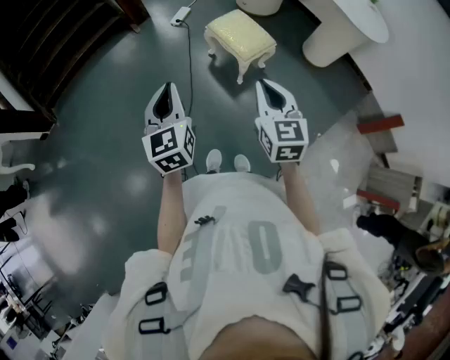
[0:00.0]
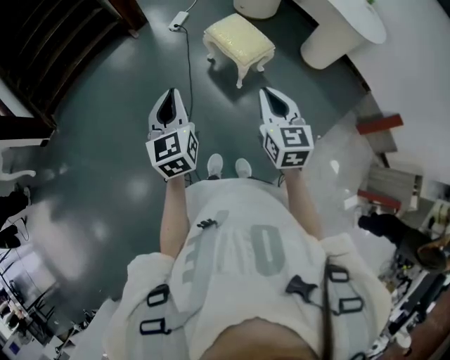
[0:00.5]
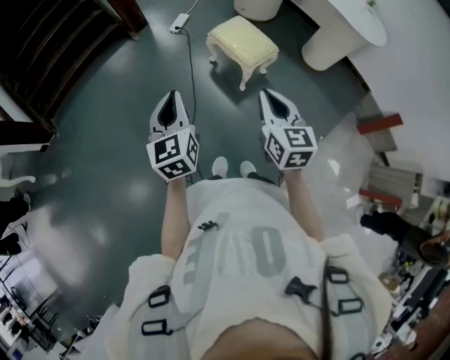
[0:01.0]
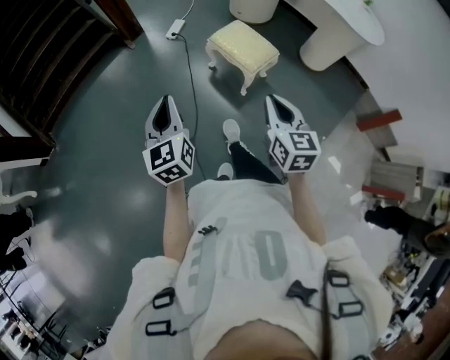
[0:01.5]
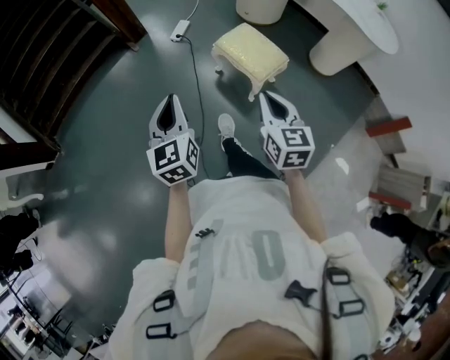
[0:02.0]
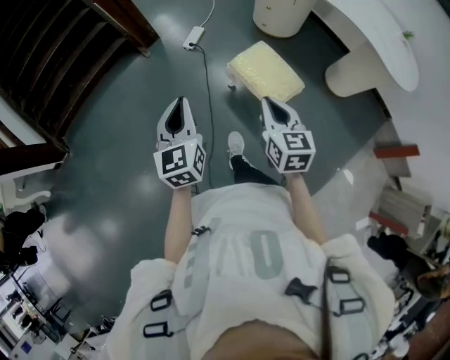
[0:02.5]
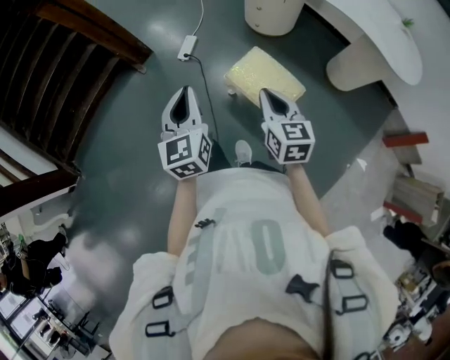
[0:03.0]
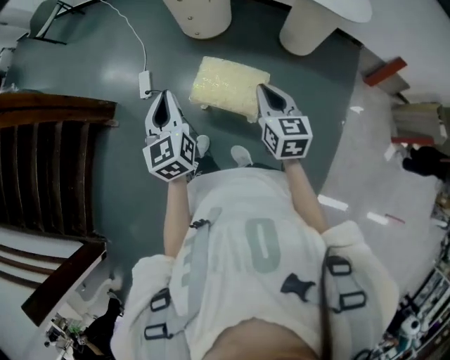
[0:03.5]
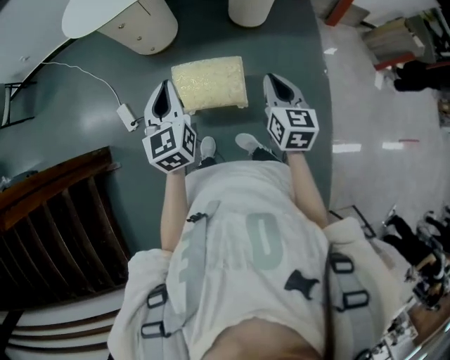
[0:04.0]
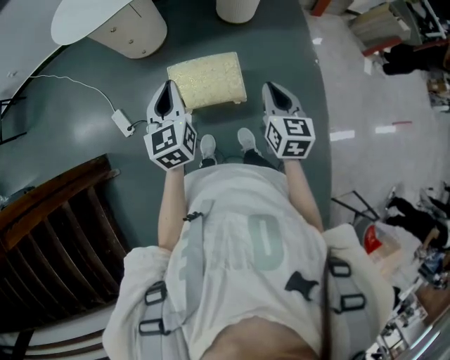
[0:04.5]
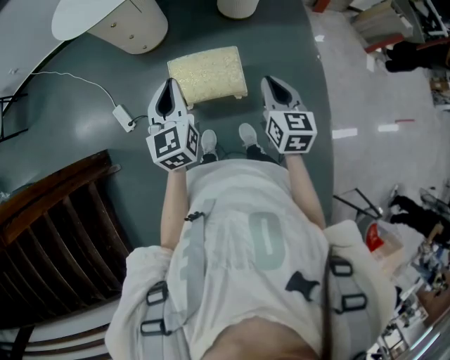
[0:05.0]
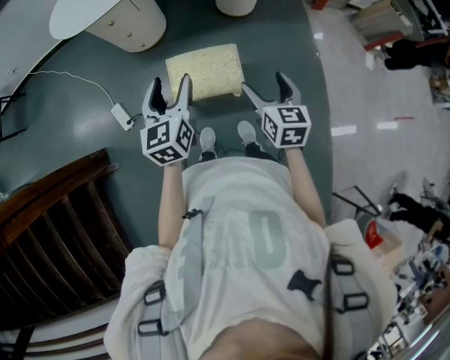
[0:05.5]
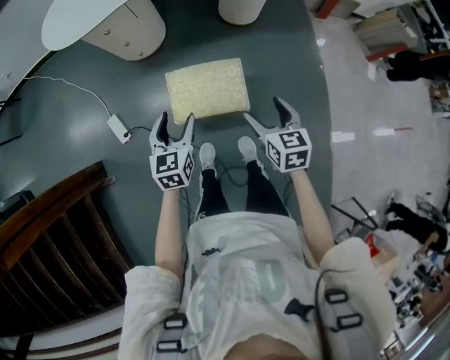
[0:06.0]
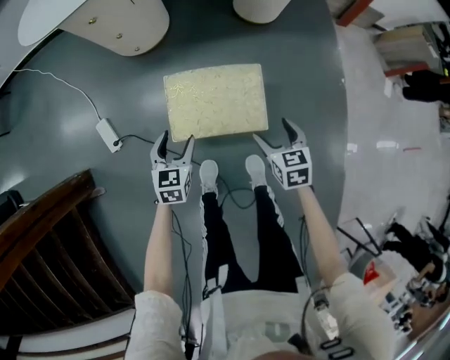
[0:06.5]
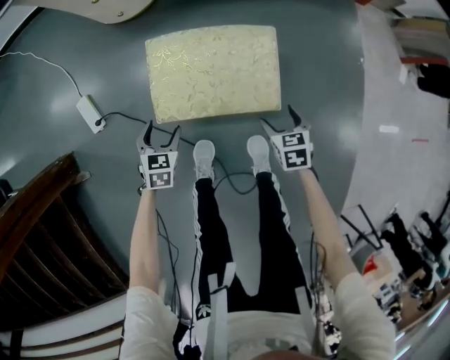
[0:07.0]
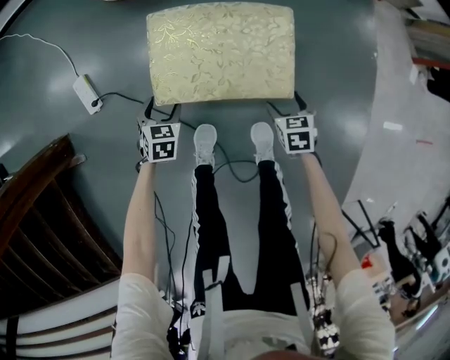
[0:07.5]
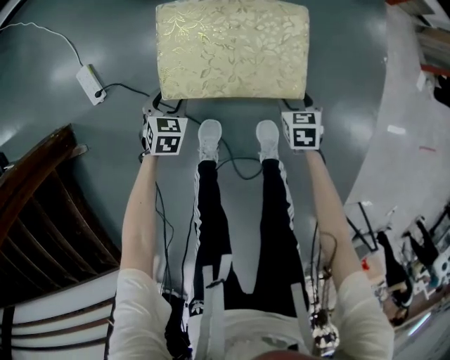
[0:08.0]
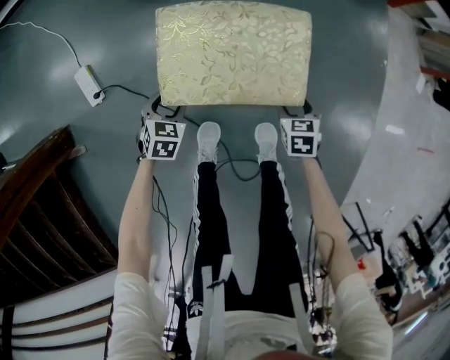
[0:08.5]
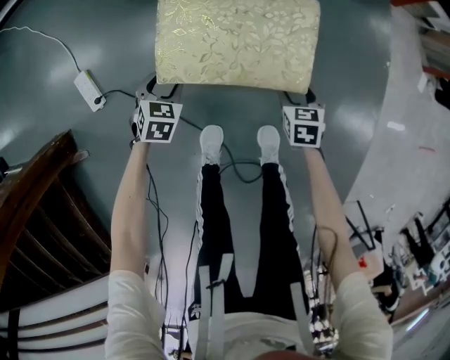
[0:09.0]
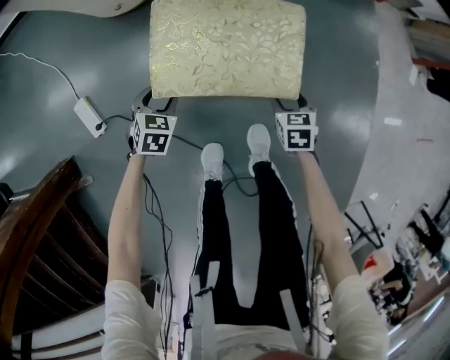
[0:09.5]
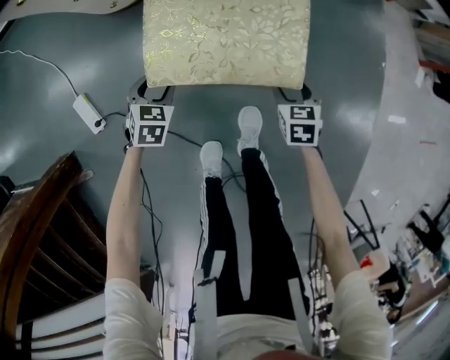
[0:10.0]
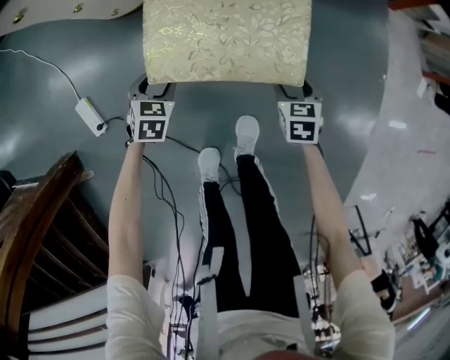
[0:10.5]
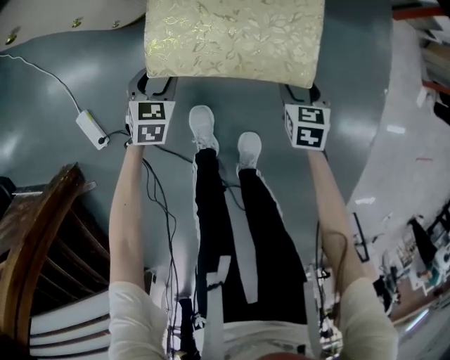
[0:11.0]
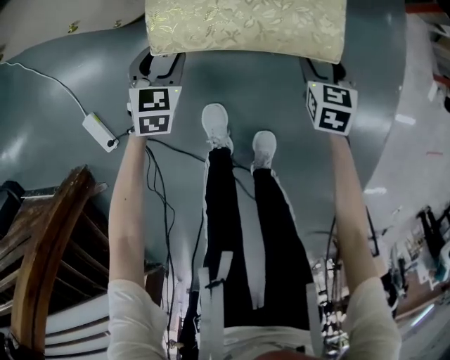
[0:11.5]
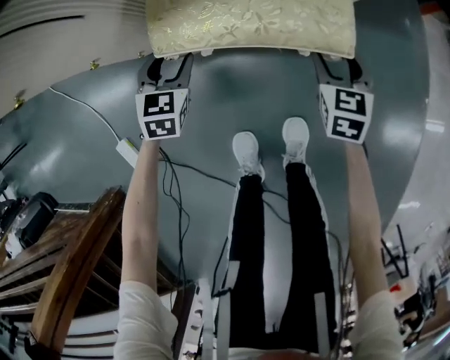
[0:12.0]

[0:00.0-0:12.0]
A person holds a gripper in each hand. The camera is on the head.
0.0 to 2.0 s: Both grippers travel together forward and to the left, about 15 cm.
2.0 to 4.0 s: The left gripper shifts by some 50 cm, and turns by roughly 50 degrees; the right gripper changes place by some 30 cm, and swivels approximately 60 degrees.
4.0 to 6.0 s: The left gripper is displaced downward by roughly 15 cm, turns by about 20 degrees, and opens its fingers, while the right gripper heads downward and to the left, covering approximately 10 cm, and opens.
6.0 to 8.0 s: Both grippers move downward, about 50 cm. The left gripper turns by about 30 degrees; the right gripper rotates approximately 30 degrees.
8.0 to 10.0 s: The grippers stay close to where they were, moving slightly.
10.0 to 12.0 s: The right gripper rotates approximately 20 degrees; the left gripper travels backward and back again, roughly 10 cm each way, and changes its angle by roughly 20 degrees.

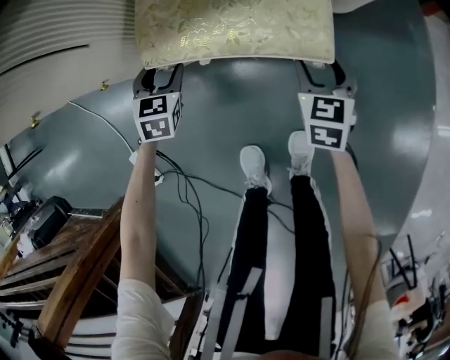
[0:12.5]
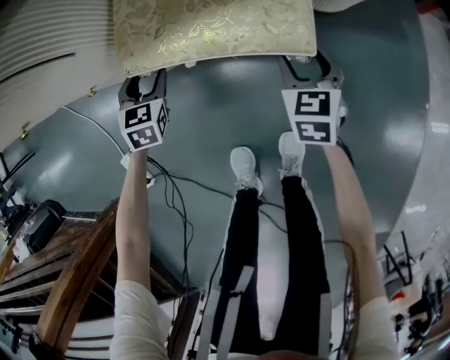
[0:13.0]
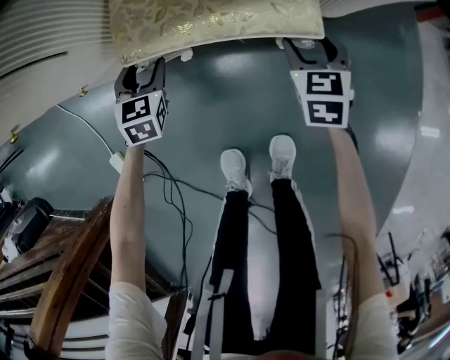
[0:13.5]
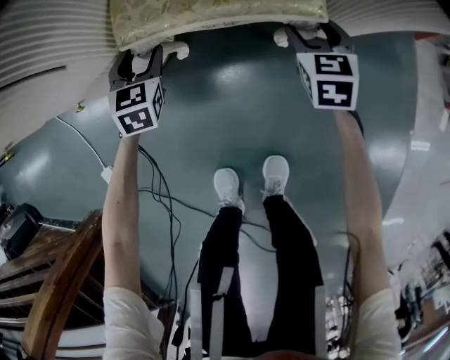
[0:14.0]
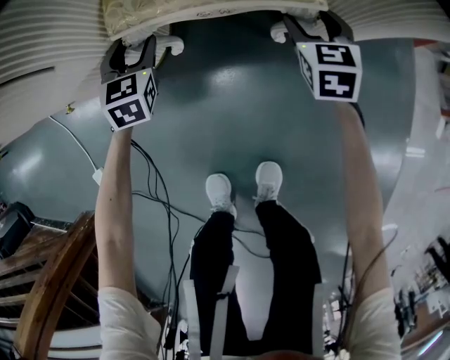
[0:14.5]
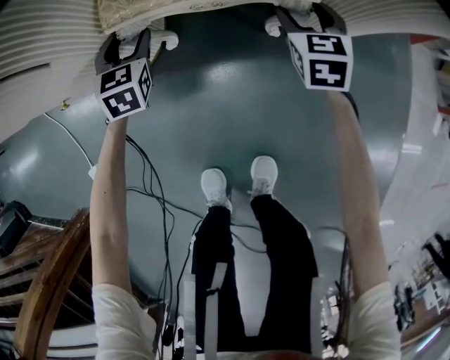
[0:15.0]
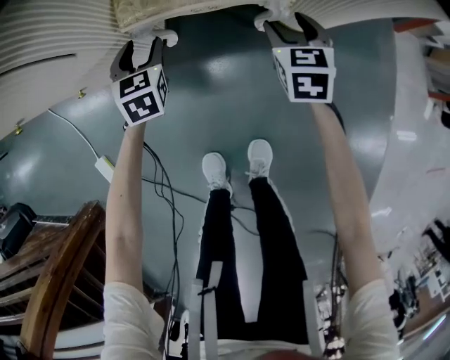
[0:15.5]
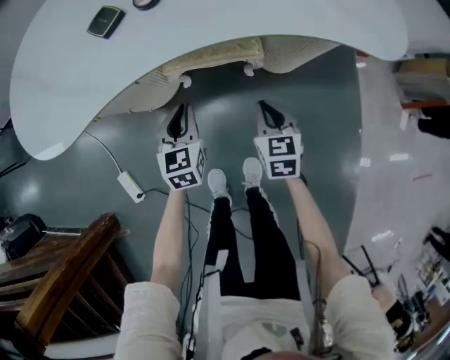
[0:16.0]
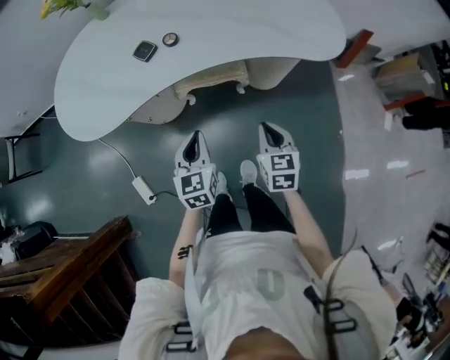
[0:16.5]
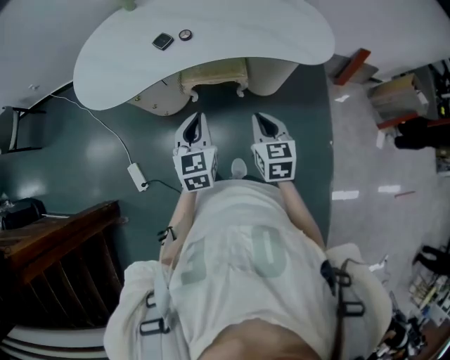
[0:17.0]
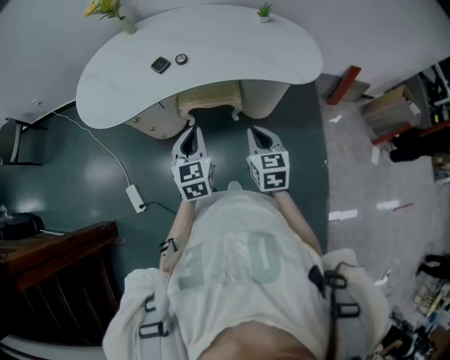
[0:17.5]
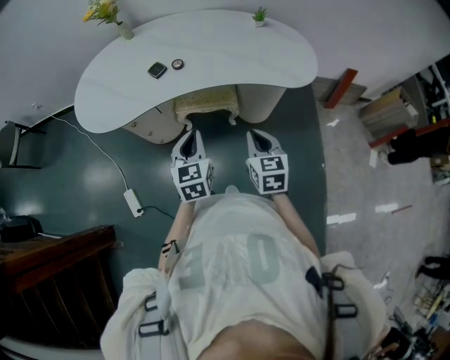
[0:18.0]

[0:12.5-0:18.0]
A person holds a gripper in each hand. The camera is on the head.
12.5 to 14.5 s: The left gripper heads forward, covering about 10 cm, while the right gripper heads forward, covering roughly 20 cm.
14.5 to 16.0 s: The right gripper goes approximately 25 cm backward and upward, and closes, while the left gripper moves upward and backward, about 30 cm, and closes.
16.0 to 18.0 s: Both grippers move upward and backward, roughly 30 cm.

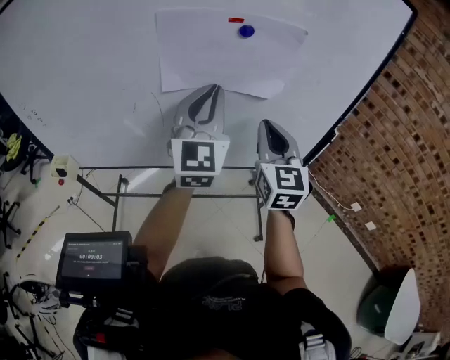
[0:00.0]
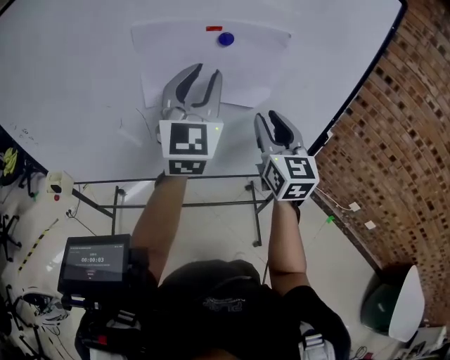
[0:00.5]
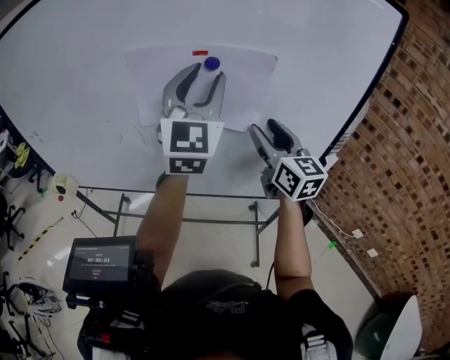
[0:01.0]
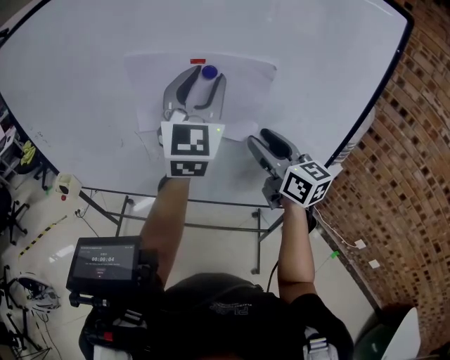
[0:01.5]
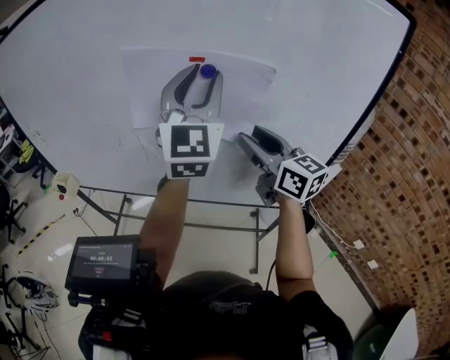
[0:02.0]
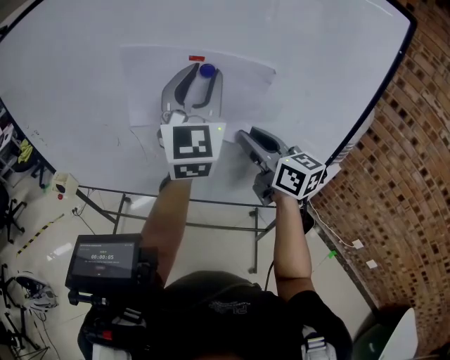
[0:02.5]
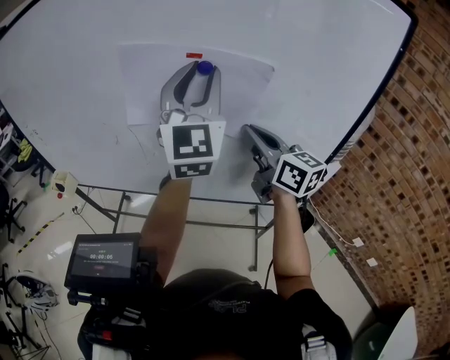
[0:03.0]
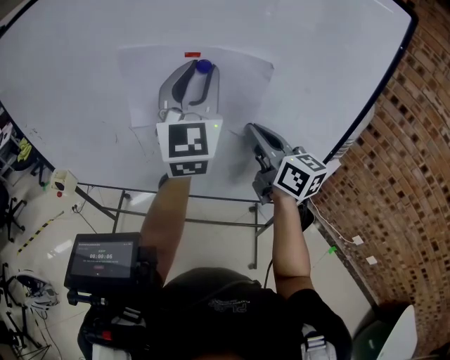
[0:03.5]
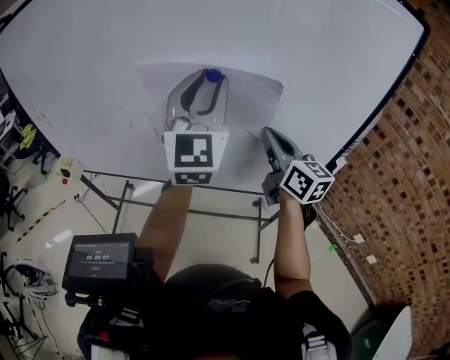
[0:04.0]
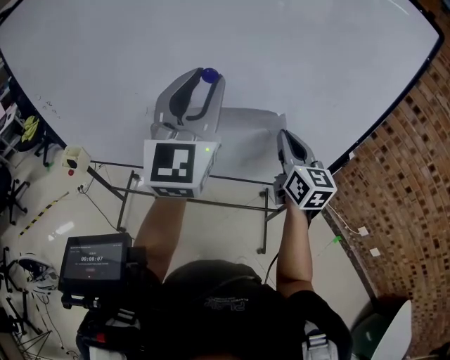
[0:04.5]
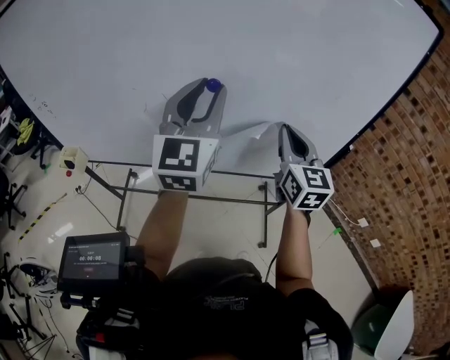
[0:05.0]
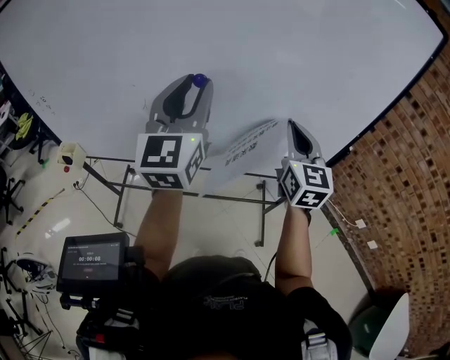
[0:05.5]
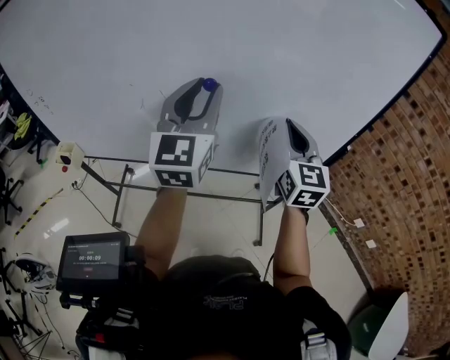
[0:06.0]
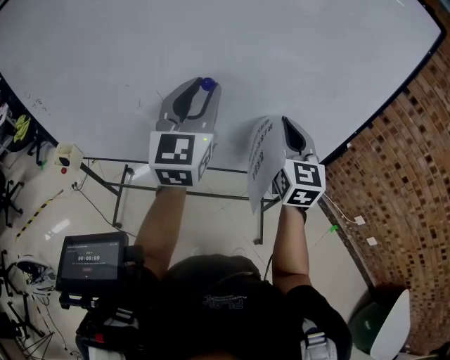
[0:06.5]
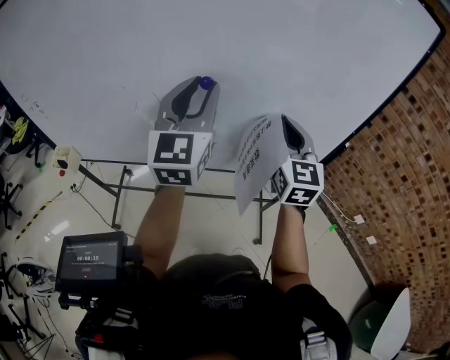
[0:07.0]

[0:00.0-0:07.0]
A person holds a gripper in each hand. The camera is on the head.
0.0 to 2.0 s: The right gripper shifts roughly 5 cm forward, swivels approximately 50 degrees, and opens up, while the left gripper shifts approximately 10 cm upward and forward, and opens.
2.0 to 3.5 s: The right gripper closes.
3.5 to 5.0 s: The left gripper heads downward and to the left, covering approximately 10 cm, while the right gripper travels downward by some 5 cm, and changes its angle by about 40 degrees.
5.0 to 7.0 s: The grippers stay close to where they were, moving slightly.

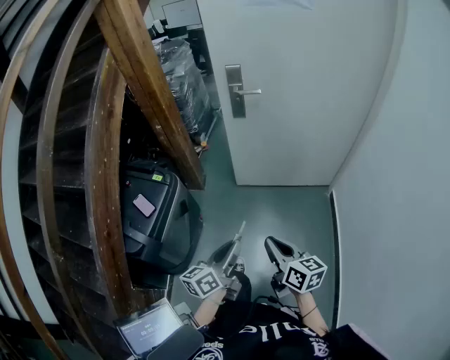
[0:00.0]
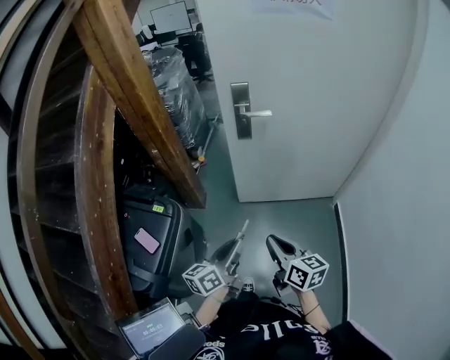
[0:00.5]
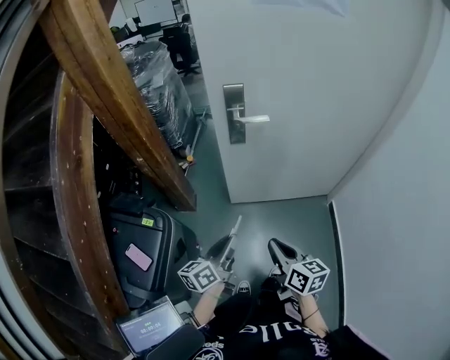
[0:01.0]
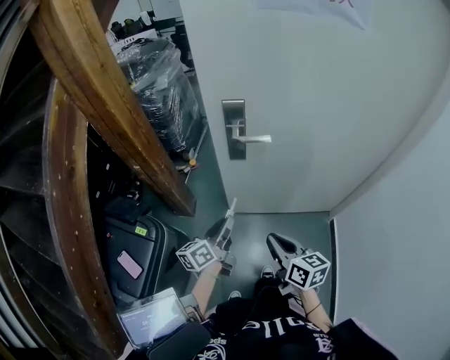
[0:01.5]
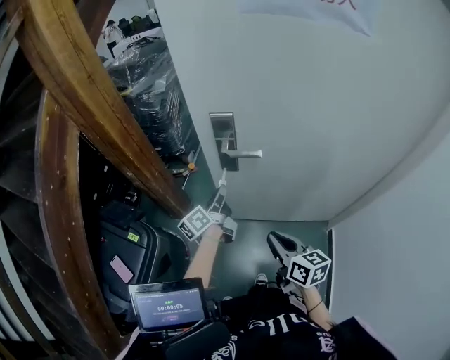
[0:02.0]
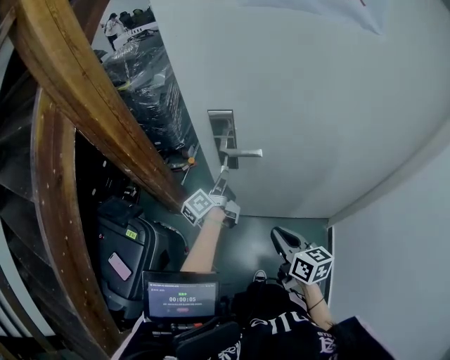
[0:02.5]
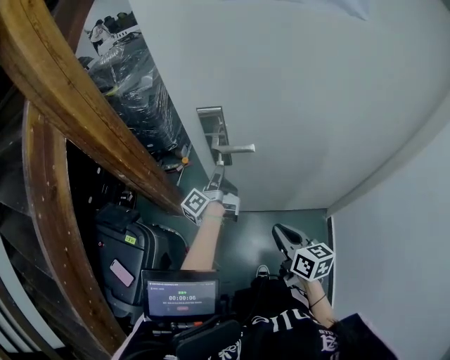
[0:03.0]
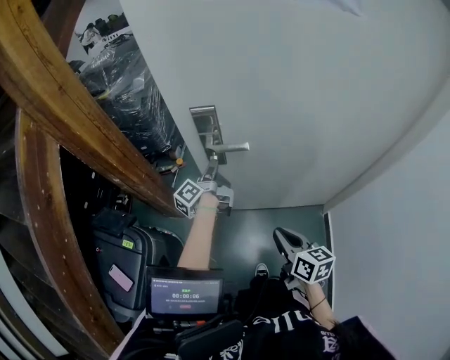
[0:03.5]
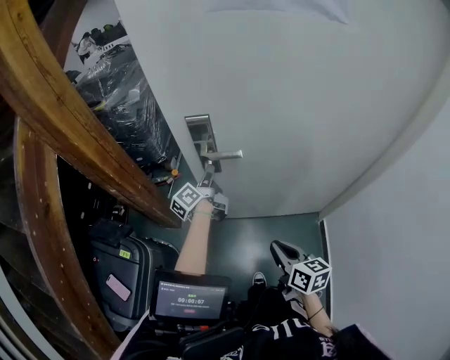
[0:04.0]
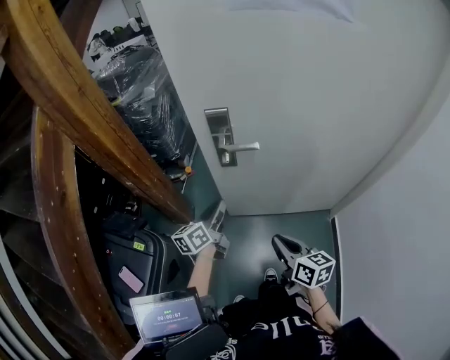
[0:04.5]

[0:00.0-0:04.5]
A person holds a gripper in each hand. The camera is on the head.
0.0 to 2.0 s: The pair of grippers is taken forward, some 50 cm. The left gripper swivels roughly 20 degrees.
2.0 to 4.5 s: The left gripper travels backward by roughly 5 cm, and turns by some 30 degrees.
